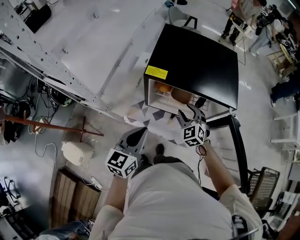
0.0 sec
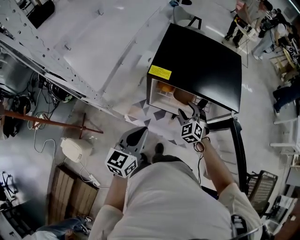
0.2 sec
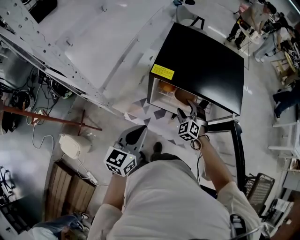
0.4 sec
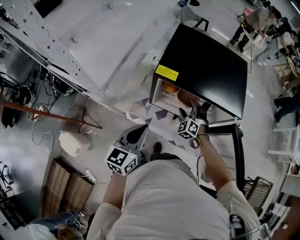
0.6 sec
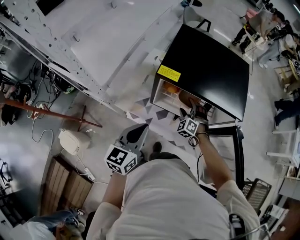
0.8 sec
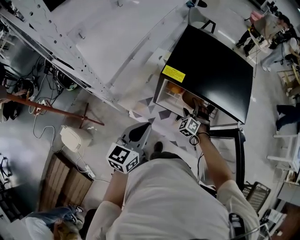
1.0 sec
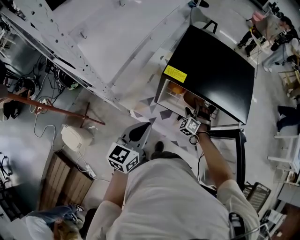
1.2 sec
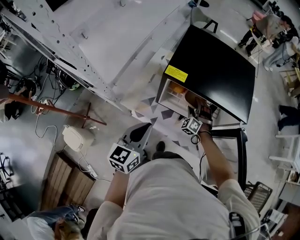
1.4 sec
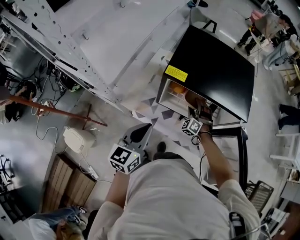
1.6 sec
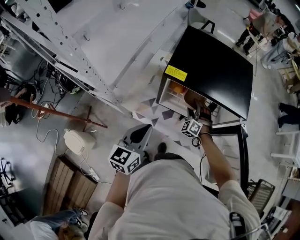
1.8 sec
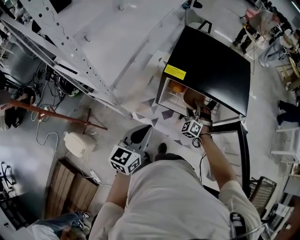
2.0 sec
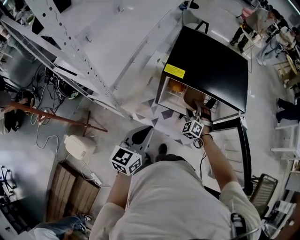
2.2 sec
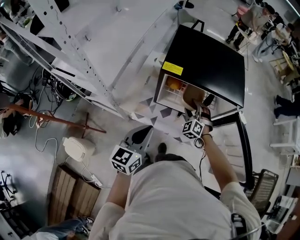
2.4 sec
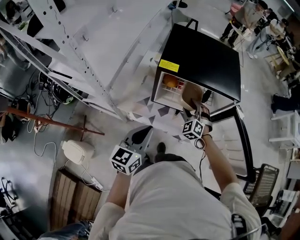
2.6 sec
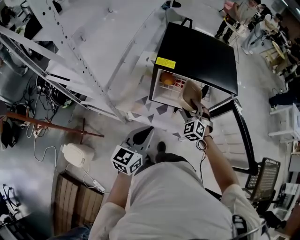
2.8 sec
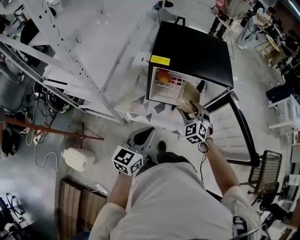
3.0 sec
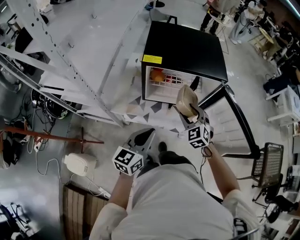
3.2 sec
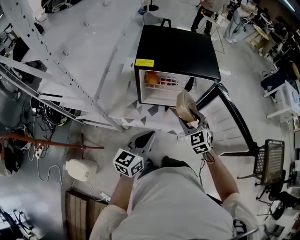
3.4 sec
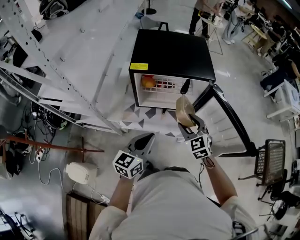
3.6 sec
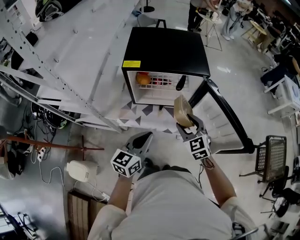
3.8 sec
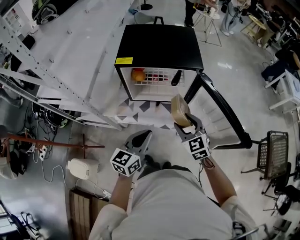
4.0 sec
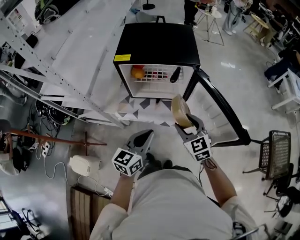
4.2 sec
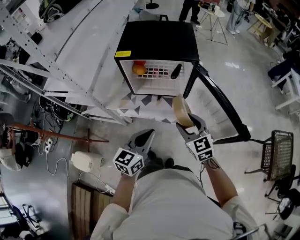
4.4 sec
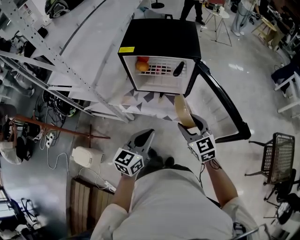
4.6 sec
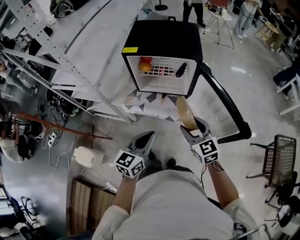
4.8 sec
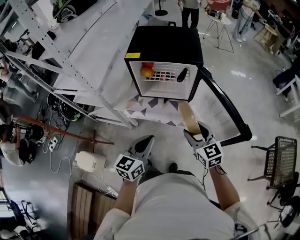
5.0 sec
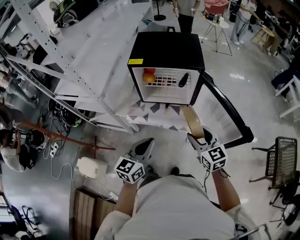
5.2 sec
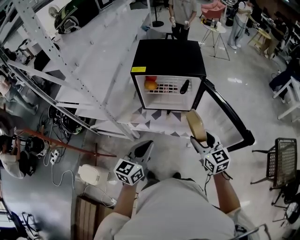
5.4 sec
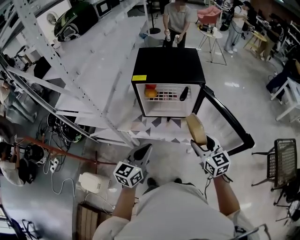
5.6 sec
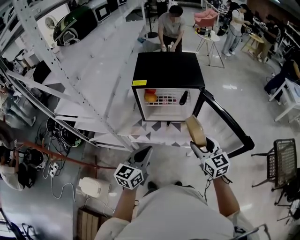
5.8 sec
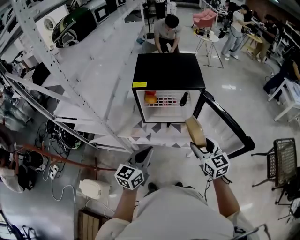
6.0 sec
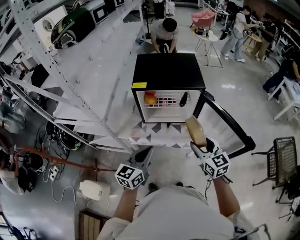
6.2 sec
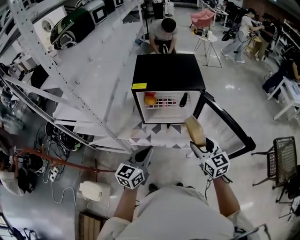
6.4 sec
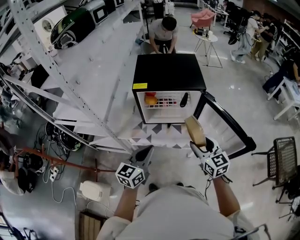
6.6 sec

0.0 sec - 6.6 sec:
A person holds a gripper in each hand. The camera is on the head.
0.0 sec - 1.6 sec: The right gripper shifts some 10 cm downward and forward, and swivels roughly 30 degrees.
1.6 sec - 3.2 sec: The right gripper is displaced backward and upward by some 25 cm, and rotates approximately 30 degrees. The left gripper is displaced backward and to the right by about 10 cm.
3.2 sec - 5.0 sec: The right gripper goes approximately 20 cm backward and to the right, and changes its angle by about 40 degrees; the left gripper moves to the right and backward, about 15 cm.
5.0 sec - 6.6 sec: The right gripper ends up about 5 cm from where it was; the left gripper heads to the left and forward, covering some 10 cm.

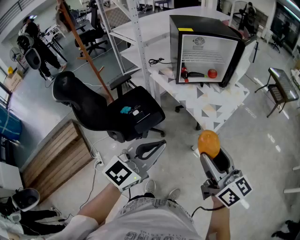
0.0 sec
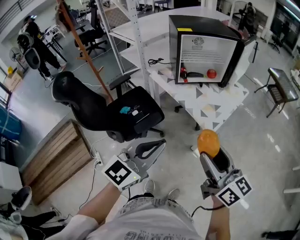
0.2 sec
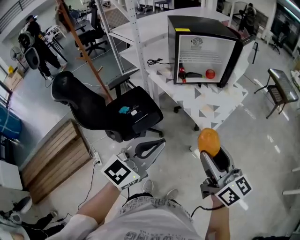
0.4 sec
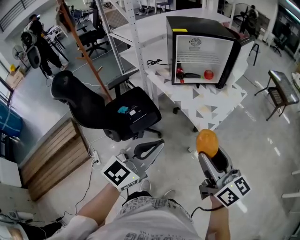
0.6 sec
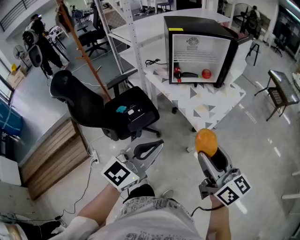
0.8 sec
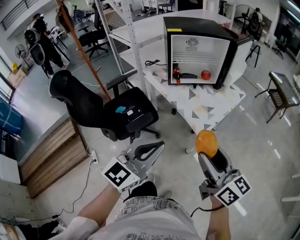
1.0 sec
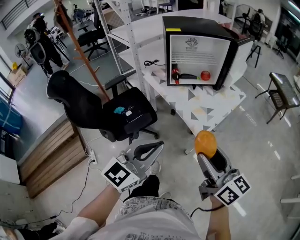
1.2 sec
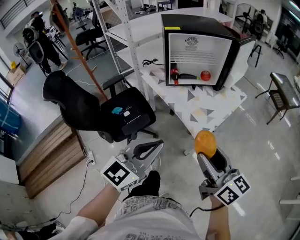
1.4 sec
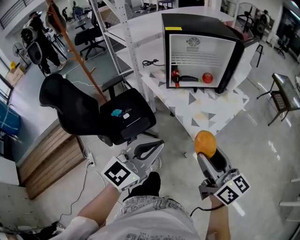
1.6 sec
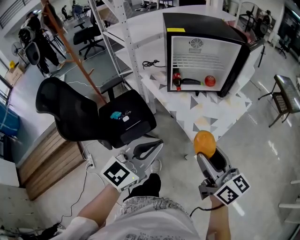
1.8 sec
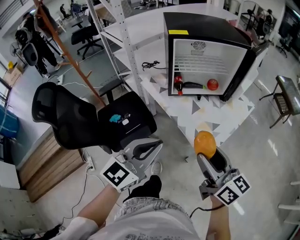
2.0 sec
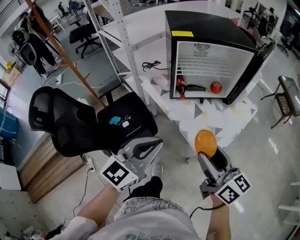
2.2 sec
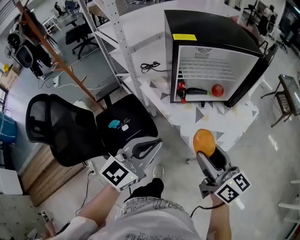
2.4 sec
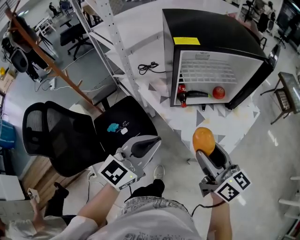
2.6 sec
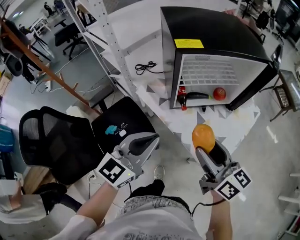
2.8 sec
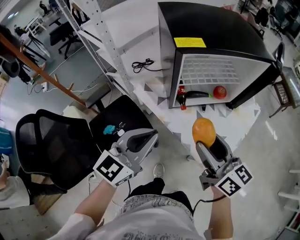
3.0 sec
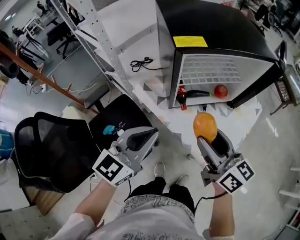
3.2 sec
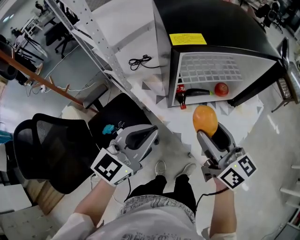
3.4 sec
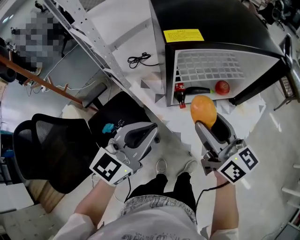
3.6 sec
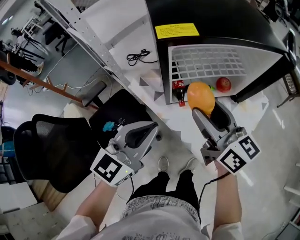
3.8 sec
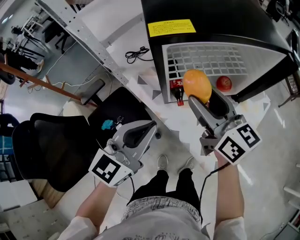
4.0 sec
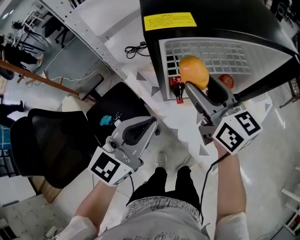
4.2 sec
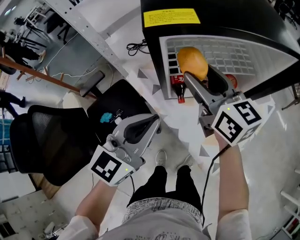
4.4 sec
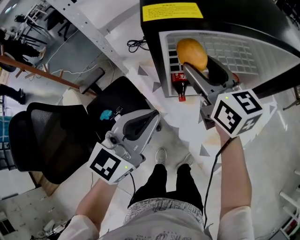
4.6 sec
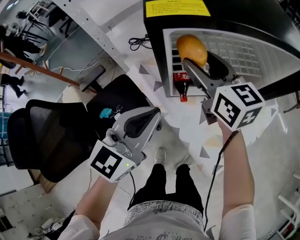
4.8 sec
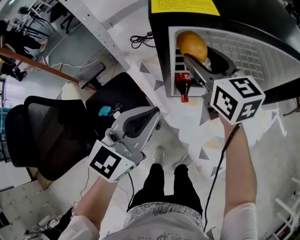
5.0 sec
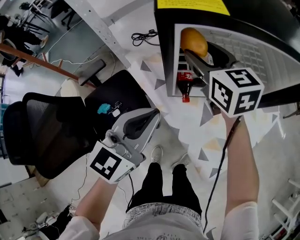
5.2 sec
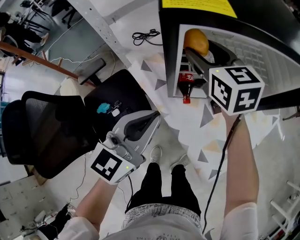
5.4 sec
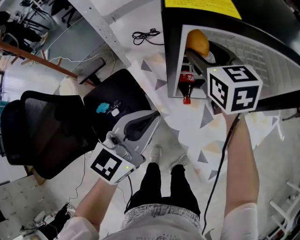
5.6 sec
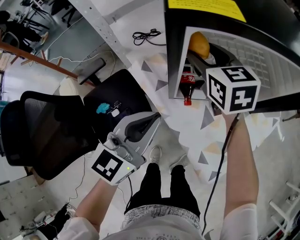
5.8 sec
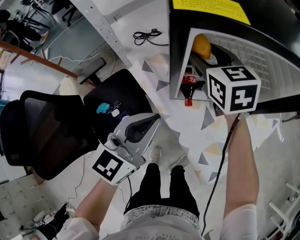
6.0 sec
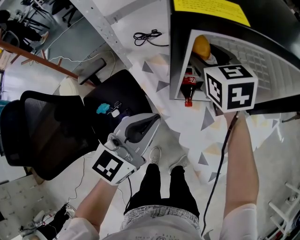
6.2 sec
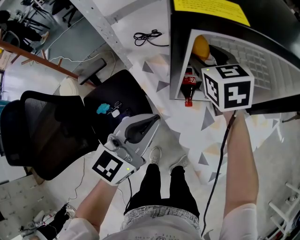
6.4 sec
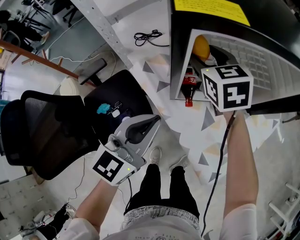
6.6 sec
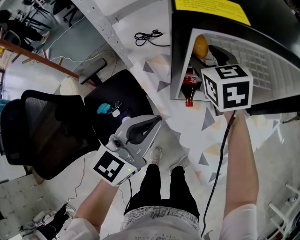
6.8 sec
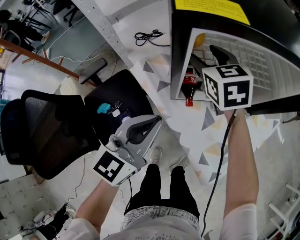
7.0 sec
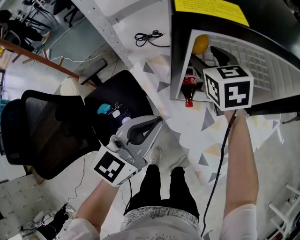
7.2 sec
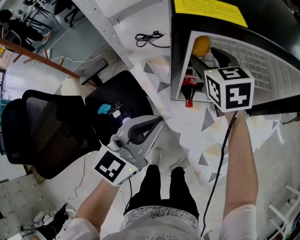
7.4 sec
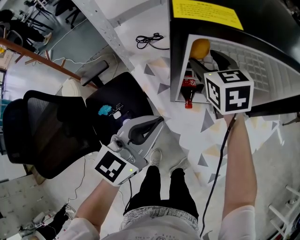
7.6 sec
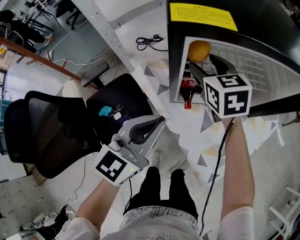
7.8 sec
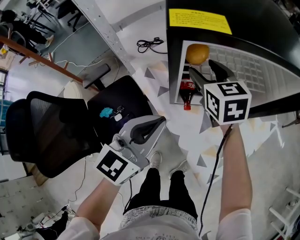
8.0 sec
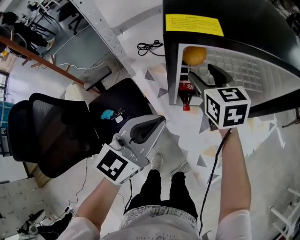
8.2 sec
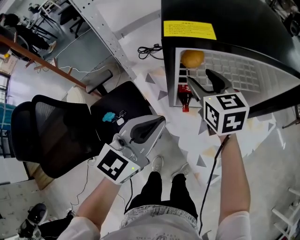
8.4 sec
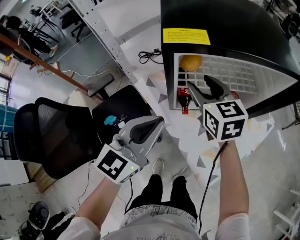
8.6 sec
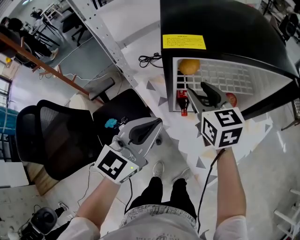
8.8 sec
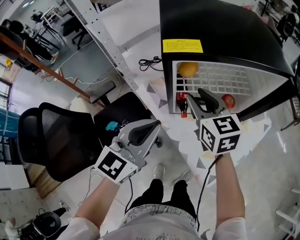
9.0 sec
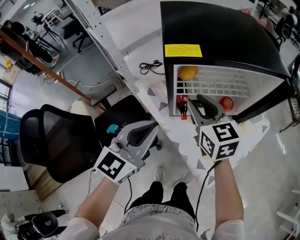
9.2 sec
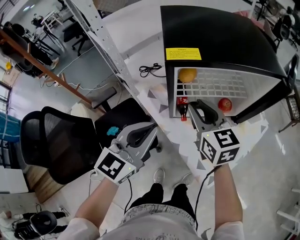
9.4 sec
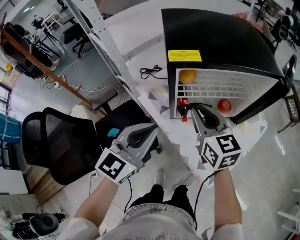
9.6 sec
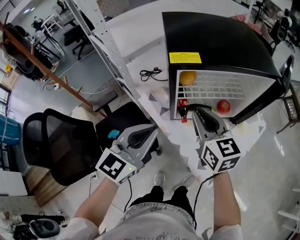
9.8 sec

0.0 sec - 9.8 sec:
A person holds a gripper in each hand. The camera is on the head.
0.0 sec - 1.4 sec: The right gripper travels to the right and forward by about 10 cm, while the left gripper is displaced to the right by approximately 10 cm.
1.4 sec - 2.8 sec: Both grippers move forward, approximately 30 cm.
2.8 sec - 4.2 sec: The left gripper is displaced forward by roughly 10 cm. The right gripper goes roughly 20 cm forward.
4.2 sec - 5.6 sec: The left gripper changes place by roughly 5 cm, while the right gripper shifts about 15 cm forward and downward, and turns by approximately 30 degrees.
5.6 sec - 7.0 sec: The grippers make only small movements.
7.0 sec - 8.4 sec: The left gripper shifts roughly 5 cm upward; the right gripper heads backward, covering about 5 cm.
8.4 sec - 9.8 sec: The right gripper heads backward and upward, covering approximately 15 cm, and closes up. The left gripper goes about 5 cm upward.

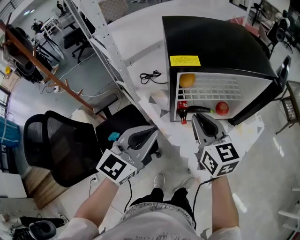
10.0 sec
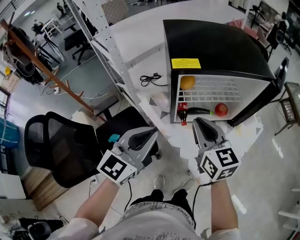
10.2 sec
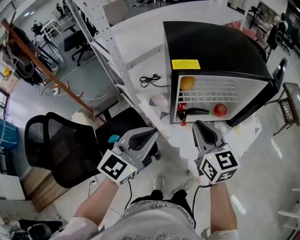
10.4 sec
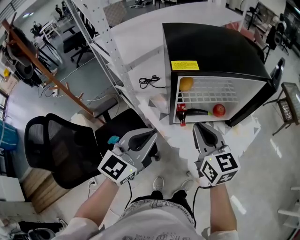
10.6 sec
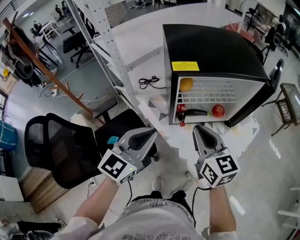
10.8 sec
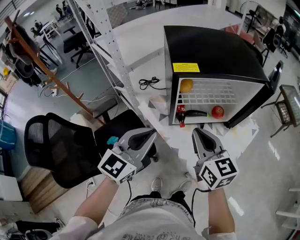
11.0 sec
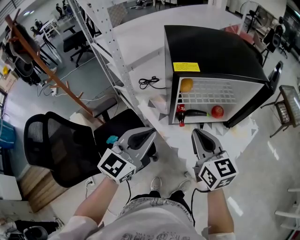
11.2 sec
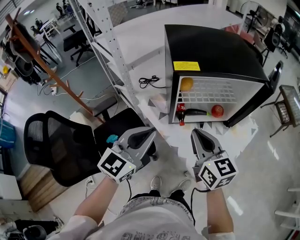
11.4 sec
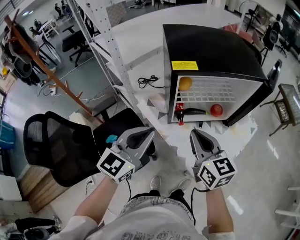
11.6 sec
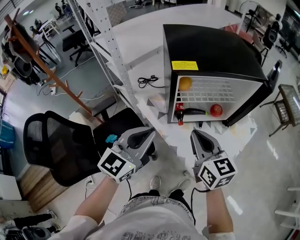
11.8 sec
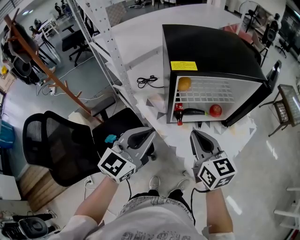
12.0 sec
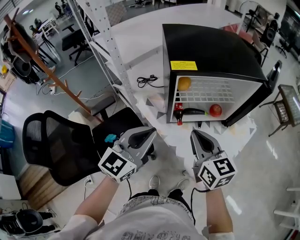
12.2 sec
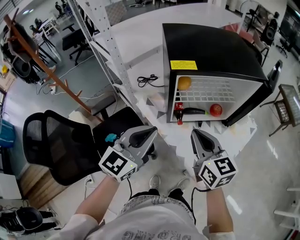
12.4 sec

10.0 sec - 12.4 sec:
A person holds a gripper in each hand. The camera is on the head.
10.0 sec - 11.2 sec: The right gripper shifts some 5 cm backward.
11.2 sec - 12.4 sec: The two grippers keep their place.

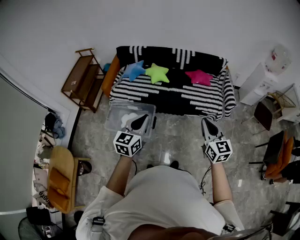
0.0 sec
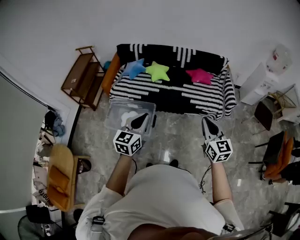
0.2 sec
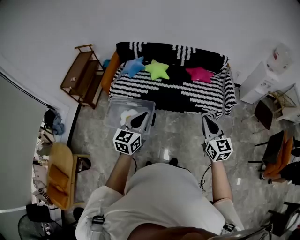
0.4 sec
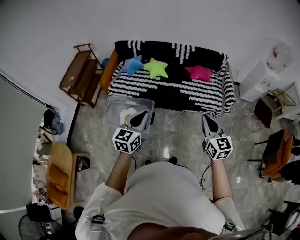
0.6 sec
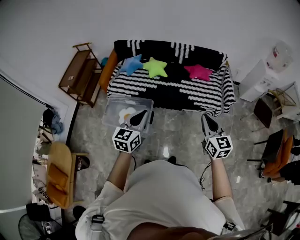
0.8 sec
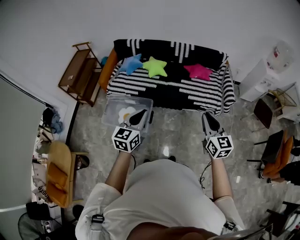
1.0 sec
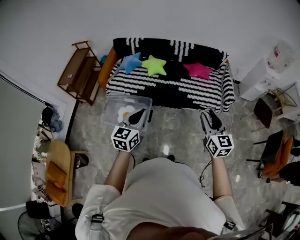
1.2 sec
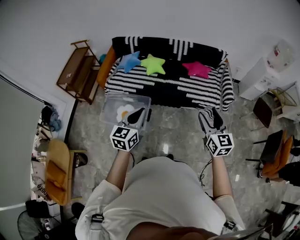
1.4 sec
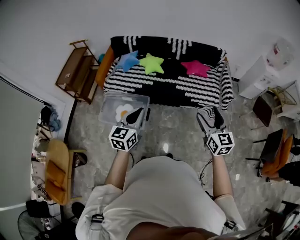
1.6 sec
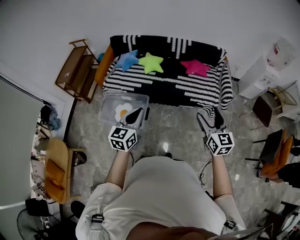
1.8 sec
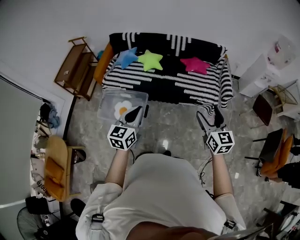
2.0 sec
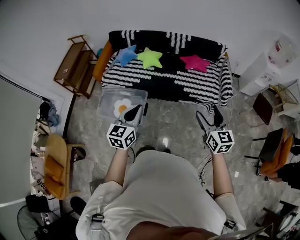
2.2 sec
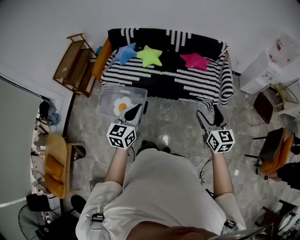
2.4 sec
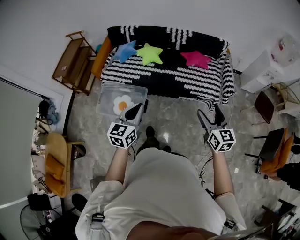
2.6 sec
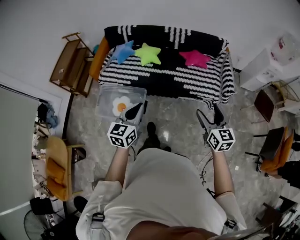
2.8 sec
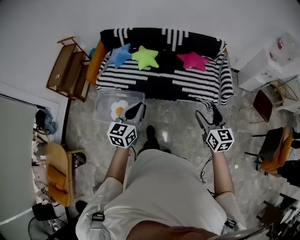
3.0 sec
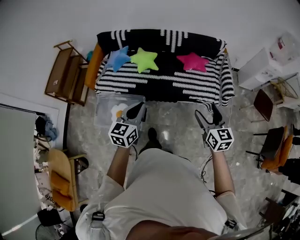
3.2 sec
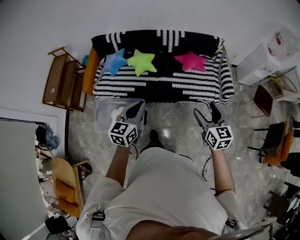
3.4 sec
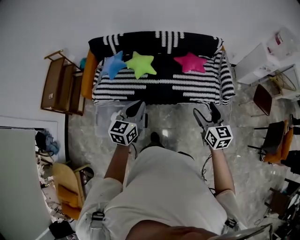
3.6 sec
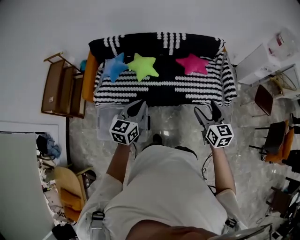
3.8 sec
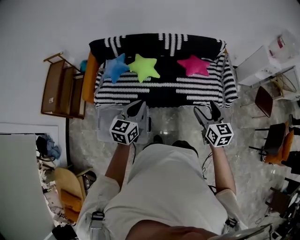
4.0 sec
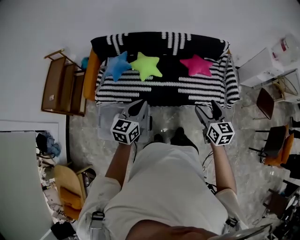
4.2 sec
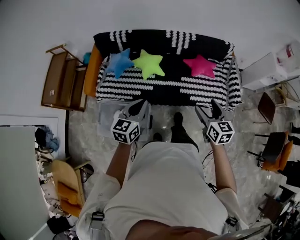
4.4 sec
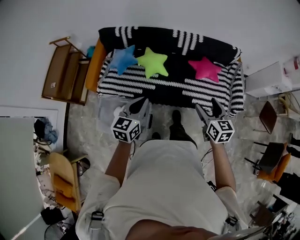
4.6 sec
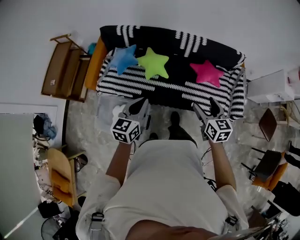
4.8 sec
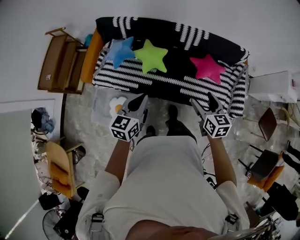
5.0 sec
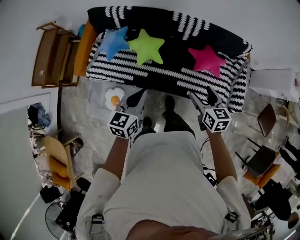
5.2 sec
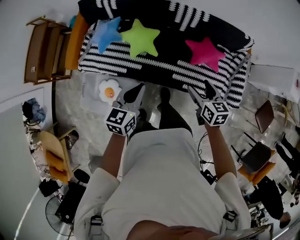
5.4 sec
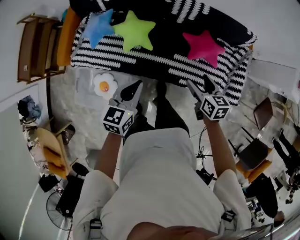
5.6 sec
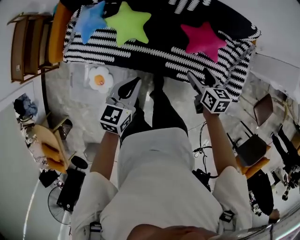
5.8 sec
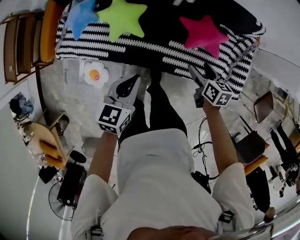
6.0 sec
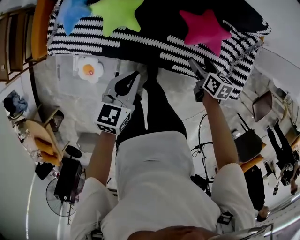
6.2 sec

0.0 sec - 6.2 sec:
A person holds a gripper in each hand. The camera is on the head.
0.0 sec - 1.6 sec: The right gripper goes roughly 10 cm to the right, and opens, while the left gripper shifts some 5 cm to the right.
1.6 sec - 3.2 sec: The two grippers go some 15 cm forward.
3.2 sec - 4.6 sec: The grippers both shift forward and to the left by approximately 25 cm.
4.6 sec - 6.2 sec: The right gripper travels downward and forward by roughly 50 cm, and turns by some 40 degrees; the left gripper travels downward, forward and to the right by some 40 cm.
